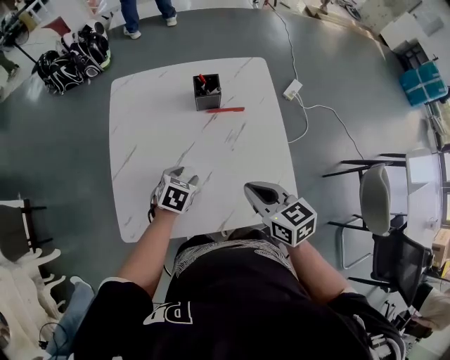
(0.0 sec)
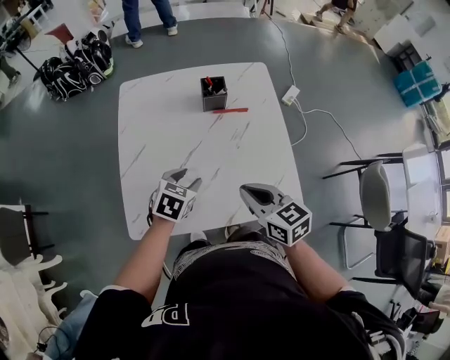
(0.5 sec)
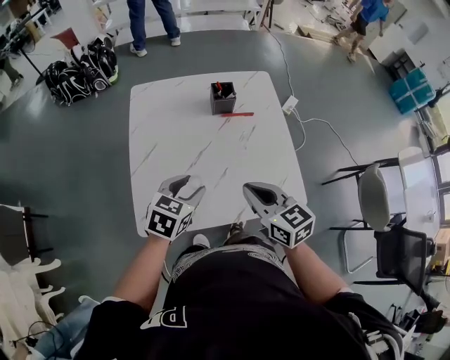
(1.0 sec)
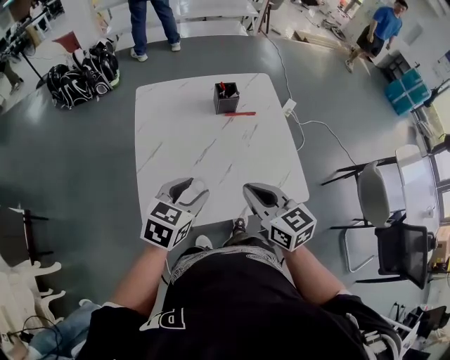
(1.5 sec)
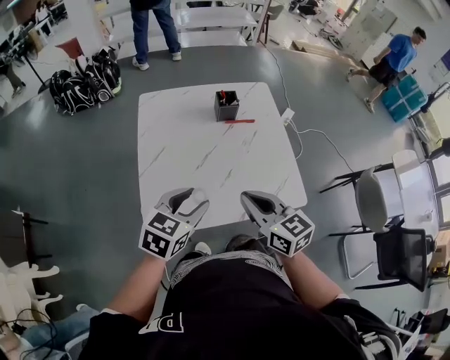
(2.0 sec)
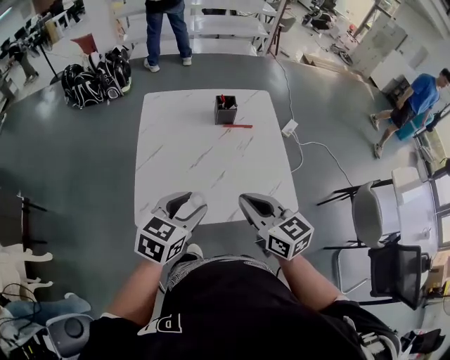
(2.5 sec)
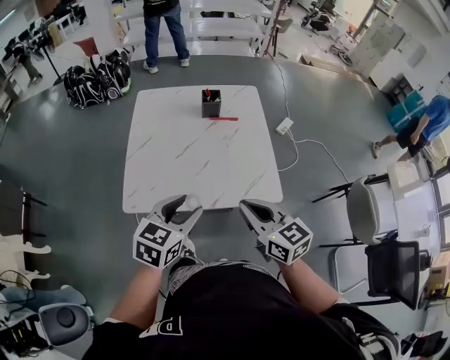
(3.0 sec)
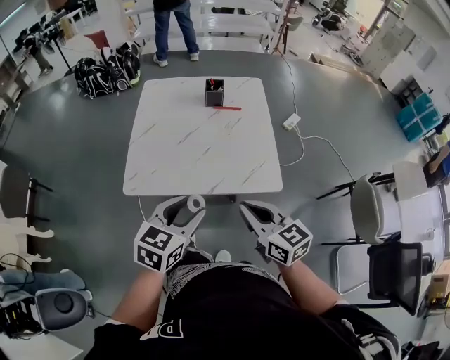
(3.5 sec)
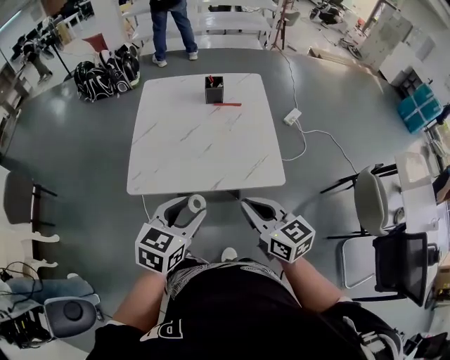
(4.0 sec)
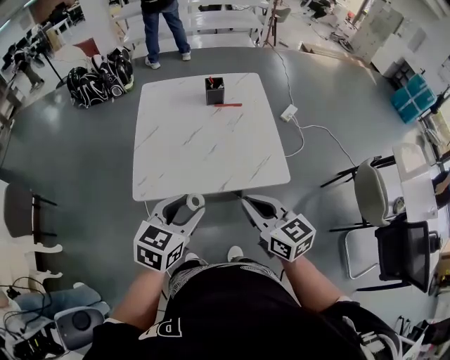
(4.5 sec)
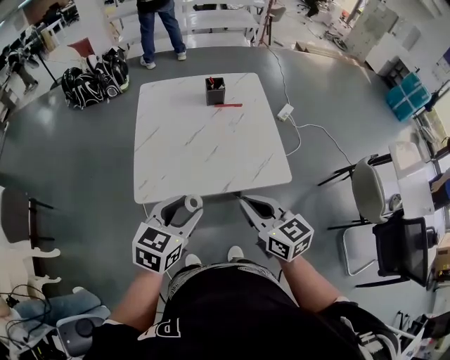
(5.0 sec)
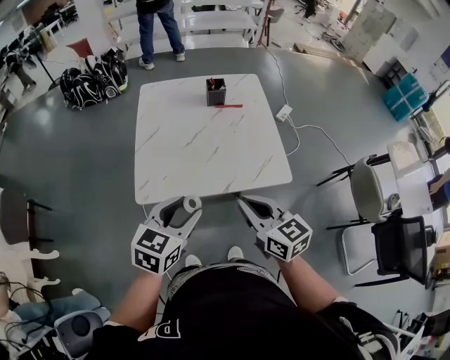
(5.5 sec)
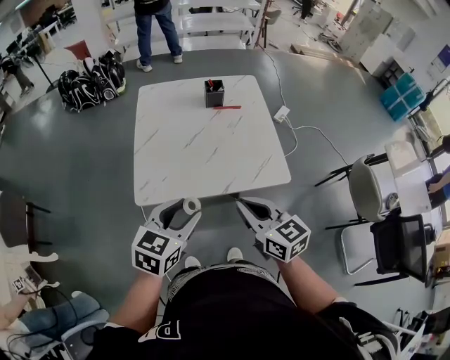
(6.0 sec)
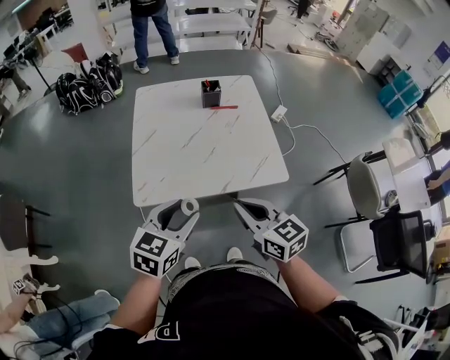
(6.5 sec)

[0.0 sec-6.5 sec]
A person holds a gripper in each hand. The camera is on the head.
0.0 sec to 2.0 sec: The right gripper moves to the left, backward and upward, about 20 cm, while the left gripper heads upward and backward, covering about 25 cm, and turns by approximately 30 degrees.
2.0 sec to 4.5 sec: Both grippers travel together backward and to the right, roughly 20 cm.
4.5 sec to 6.5 sec: The right gripper moves to the left, roughly 5 cm.

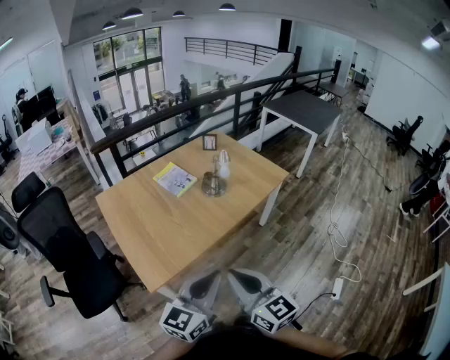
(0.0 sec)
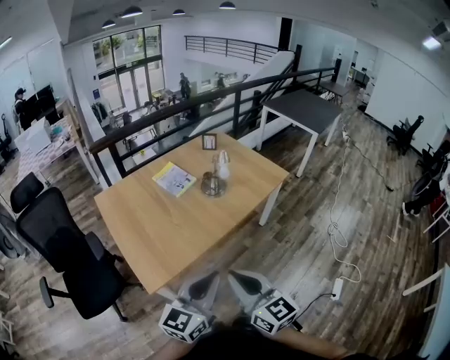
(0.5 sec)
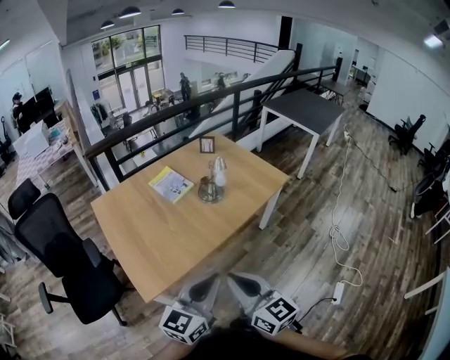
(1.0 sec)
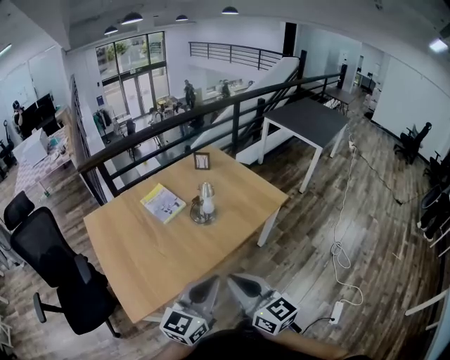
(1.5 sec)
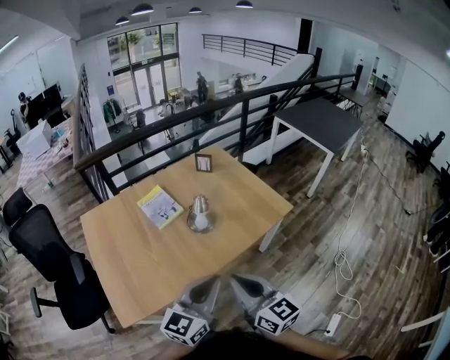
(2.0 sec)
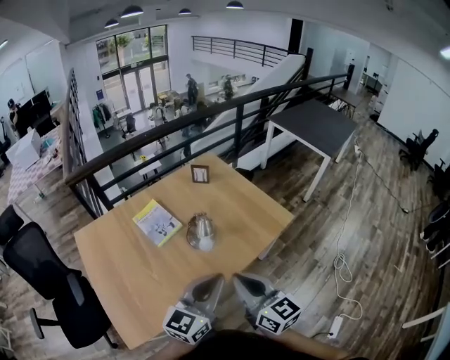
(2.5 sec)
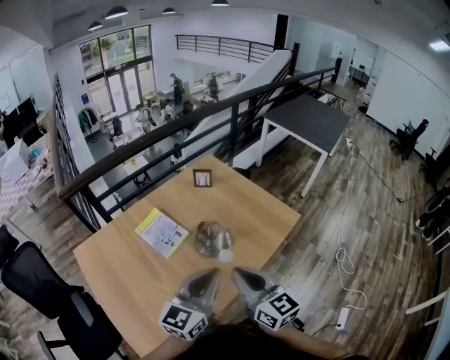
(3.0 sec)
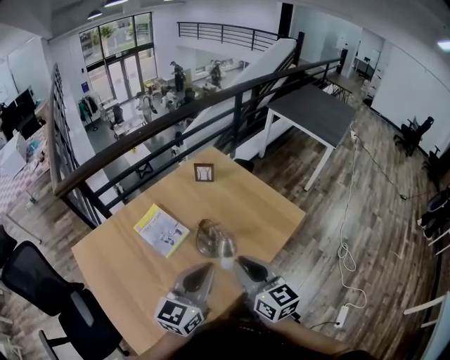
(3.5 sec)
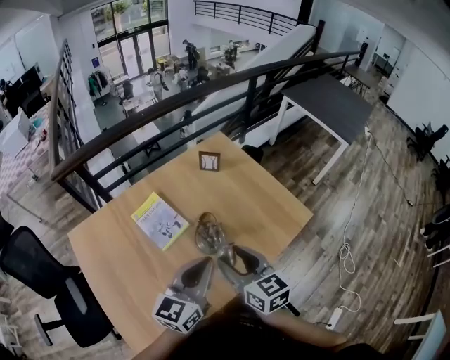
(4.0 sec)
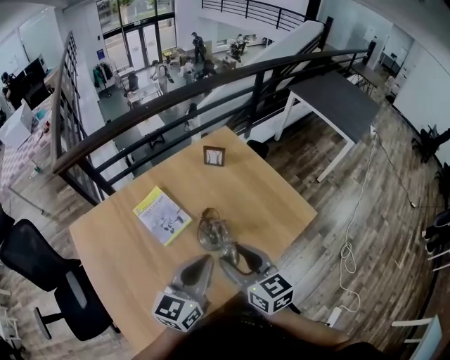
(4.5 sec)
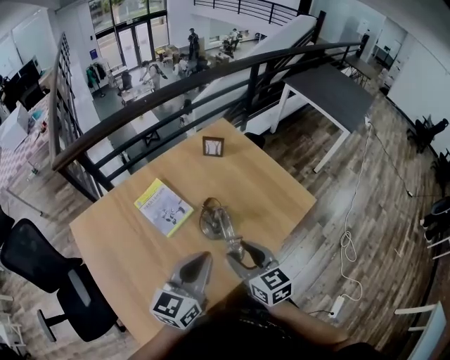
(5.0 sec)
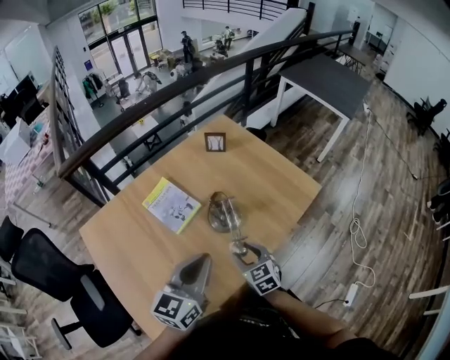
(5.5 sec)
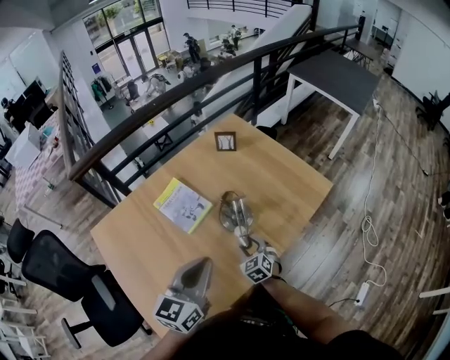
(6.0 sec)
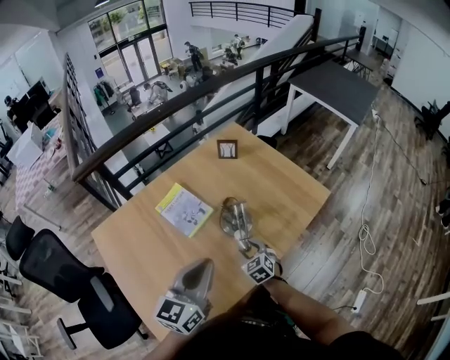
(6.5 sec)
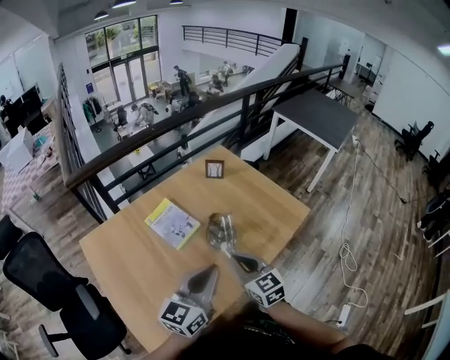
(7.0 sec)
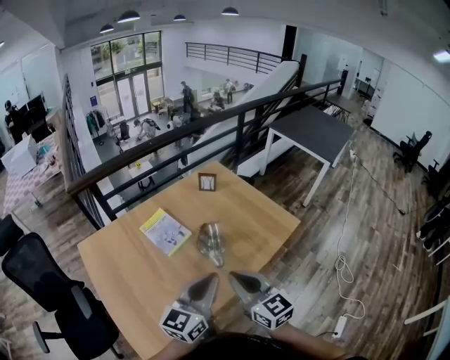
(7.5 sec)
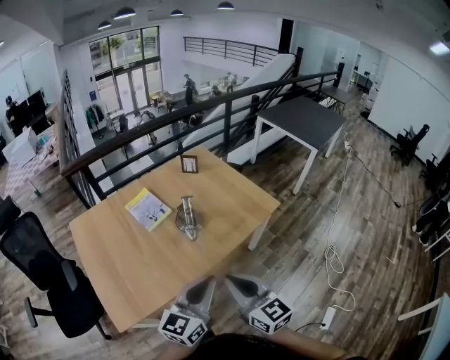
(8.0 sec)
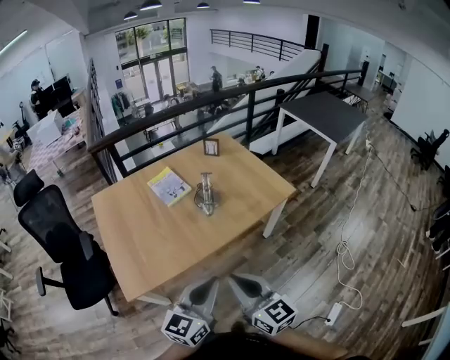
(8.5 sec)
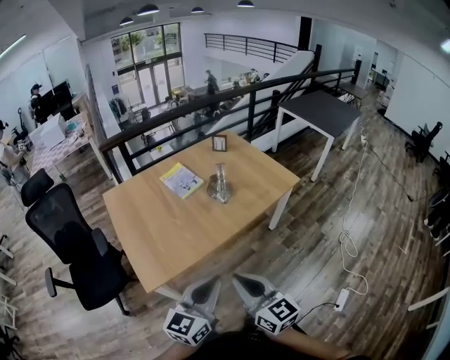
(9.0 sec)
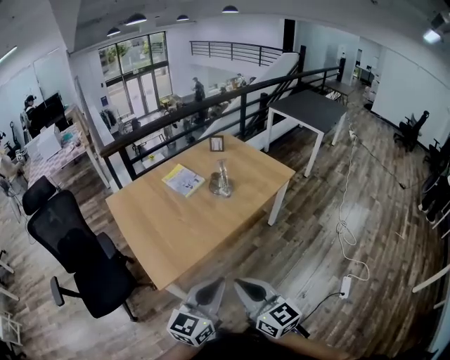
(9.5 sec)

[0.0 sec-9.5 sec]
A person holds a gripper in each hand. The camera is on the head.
0.0 sec to 2.0 sec: The grippers both shift forward and to the right by roughly 30 cm.
2.0 sec to 4.0 sec: The left gripper heads forward and to the left, covering roughly 25 cm, while the right gripper is displaced forward by some 25 cm, and opens its fingers.
4.0 sec to 5.5 sec: The right gripper is displaced downward by roughly 20 cm, and rotates about 20 degrees. Meanwhile the left gripper goes approximately 10 cm to the left and backward.
5.5 sec to 7.5 sec: The left gripper moves backward and to the right, approximately 10 cm. The right gripper goes about 25 cm upward and backward, rotates approximately 30 degrees, and closes up.
7.5 sec to 9.5 sec: The two grippers go some 40 cm backward.

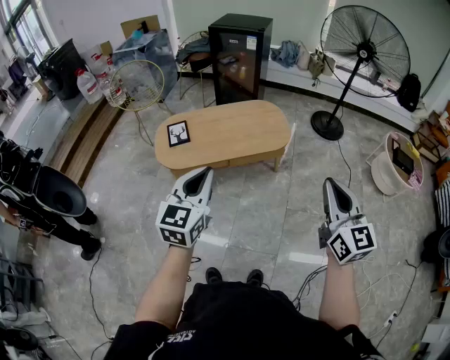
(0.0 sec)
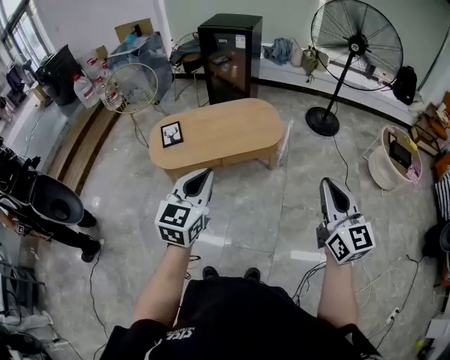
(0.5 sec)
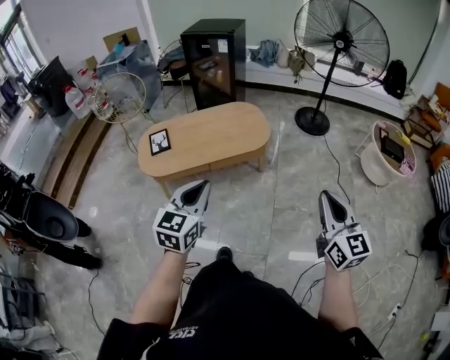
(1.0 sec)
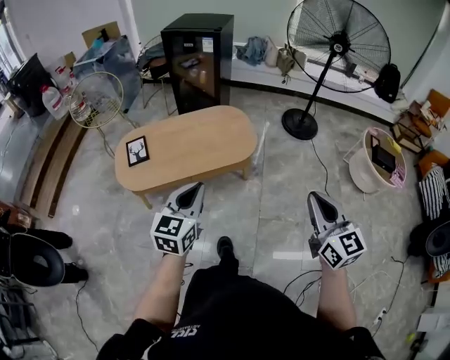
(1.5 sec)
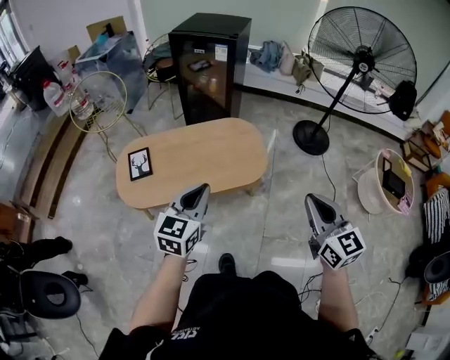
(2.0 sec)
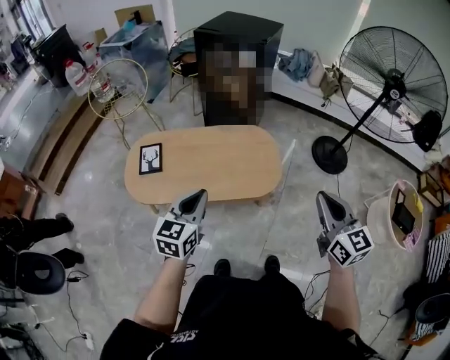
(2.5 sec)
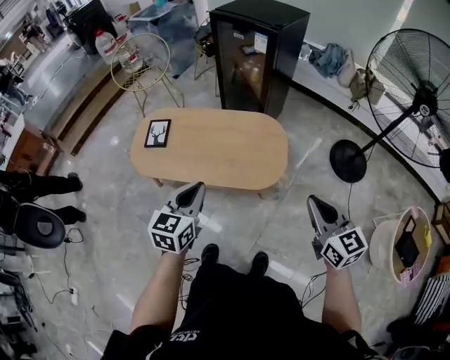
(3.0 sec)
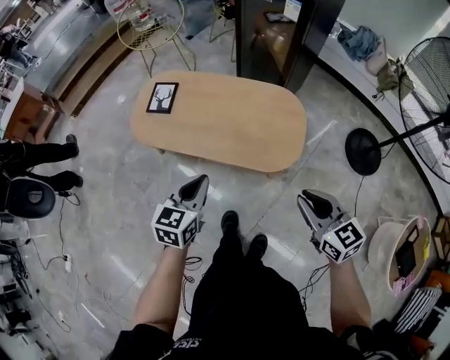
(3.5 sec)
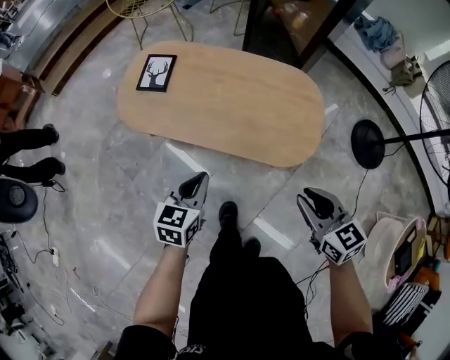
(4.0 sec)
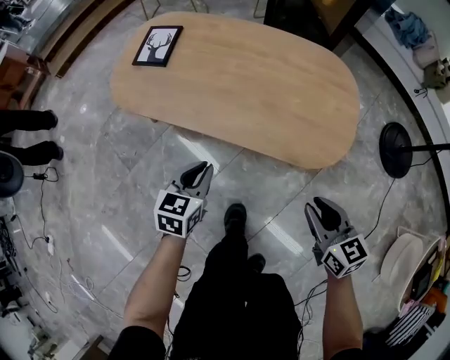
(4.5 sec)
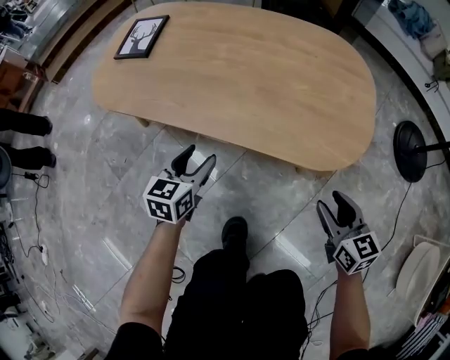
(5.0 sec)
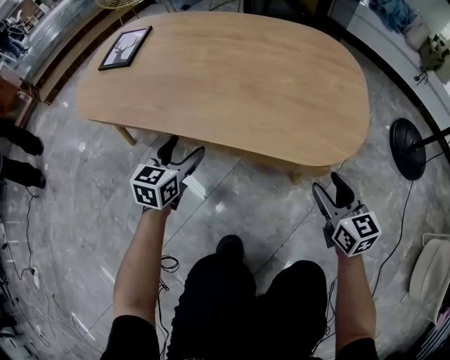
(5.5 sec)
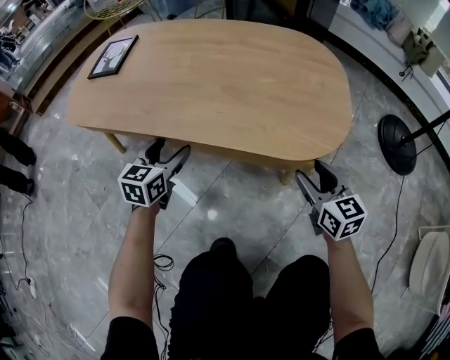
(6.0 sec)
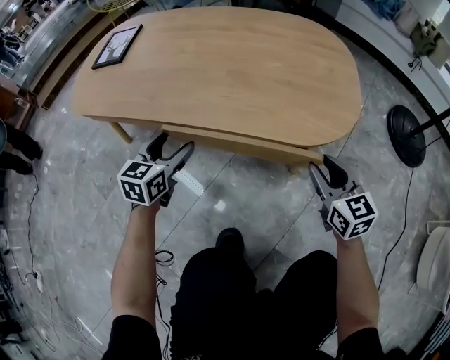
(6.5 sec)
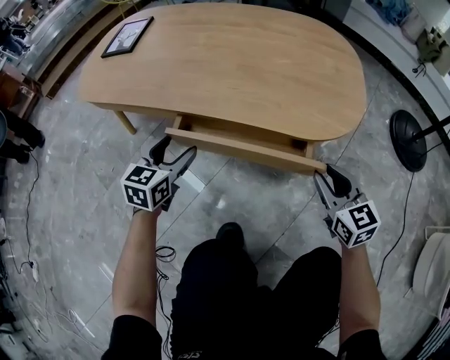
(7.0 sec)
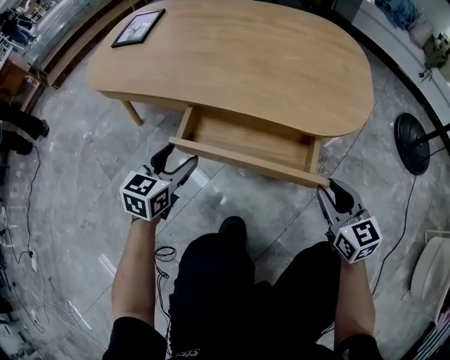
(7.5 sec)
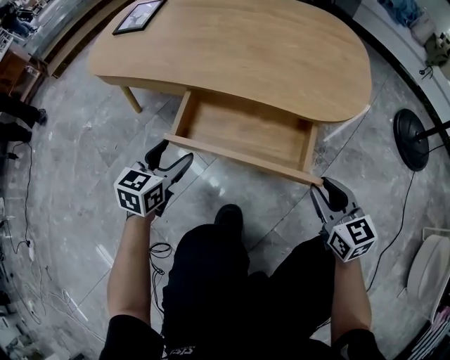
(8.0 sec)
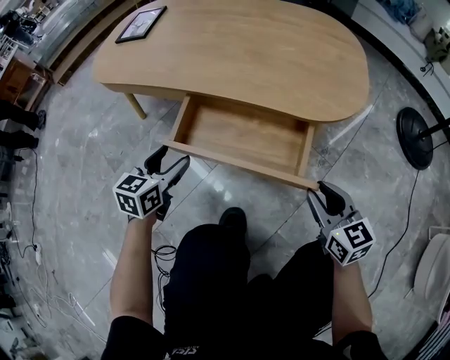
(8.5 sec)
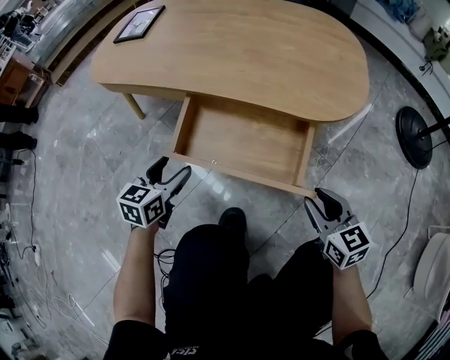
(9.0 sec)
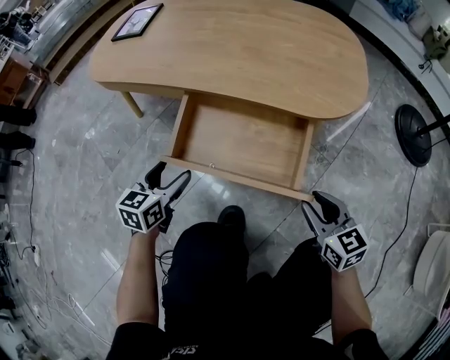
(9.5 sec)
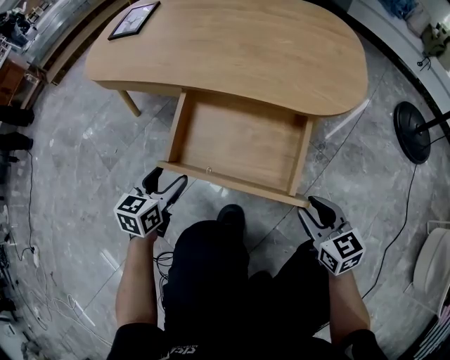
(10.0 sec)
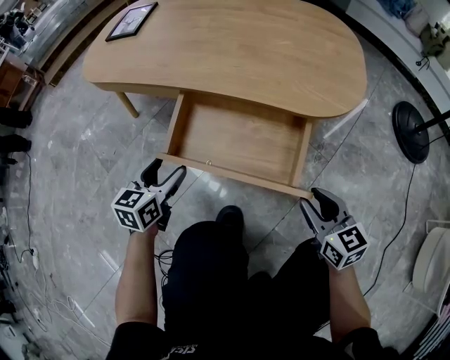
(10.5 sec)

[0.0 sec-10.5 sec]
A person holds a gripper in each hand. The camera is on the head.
0.0 sec to 2.0 sec: Both grippers travel together forward, approximately 30 cm.
2.0 sec to 4.0 sec: Both grippers move downward, approximately 30 cm. The left gripper changes its angle by roughly 40 degrees. Meanwhile the right gripper rotates approximately 50 degrees, and opens up.
4.0 sec to 6.5 sec: The two grippers go about 40 cm downward. The right gripper opens, then closes again, while the left gripper opens up.
6.5 sec to 8.5 sec: Both grippers move backward, about 15 cm.
